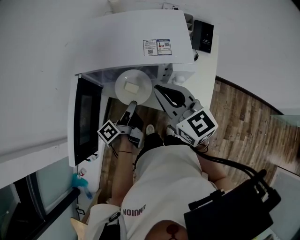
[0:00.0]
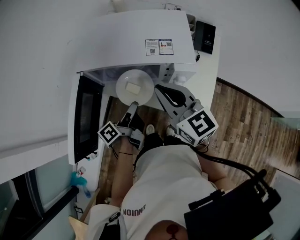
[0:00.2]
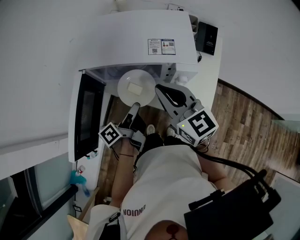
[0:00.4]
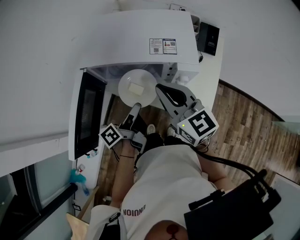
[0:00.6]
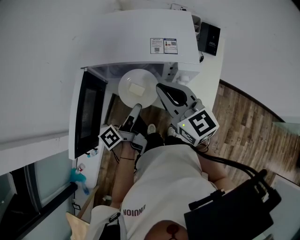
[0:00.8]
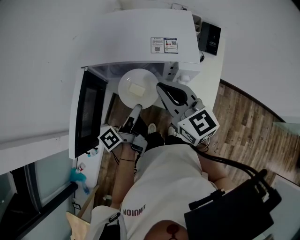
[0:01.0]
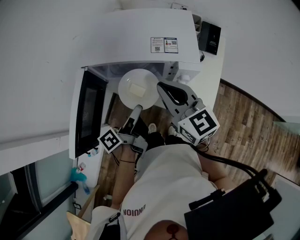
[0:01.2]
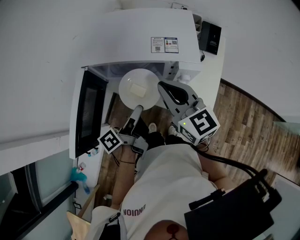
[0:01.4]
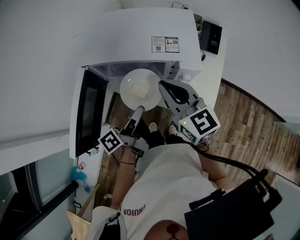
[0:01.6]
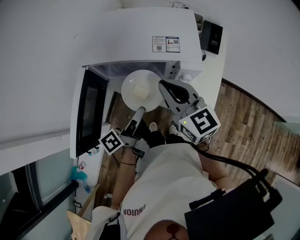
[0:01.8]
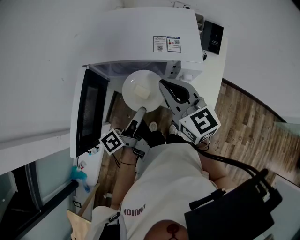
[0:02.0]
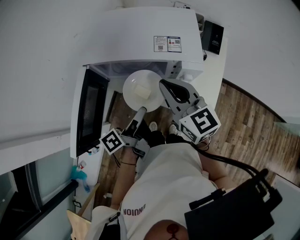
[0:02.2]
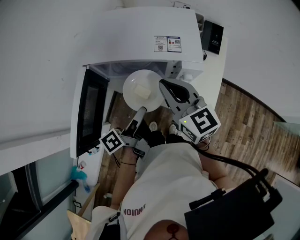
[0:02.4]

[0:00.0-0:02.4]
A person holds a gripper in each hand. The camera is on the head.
0:00.0 to 0:01.2: The left gripper changes place by some 5 cm.
0:01.2 to 0:02.4: The grippers make only small movements.

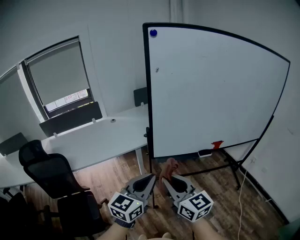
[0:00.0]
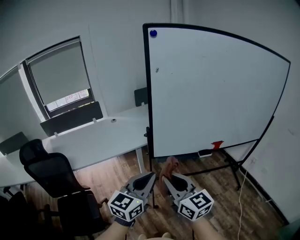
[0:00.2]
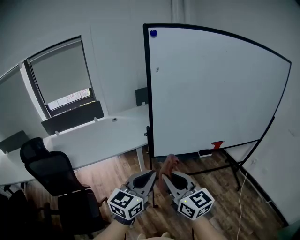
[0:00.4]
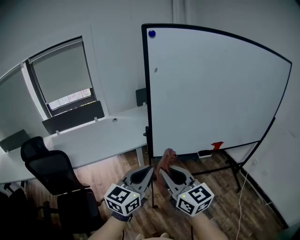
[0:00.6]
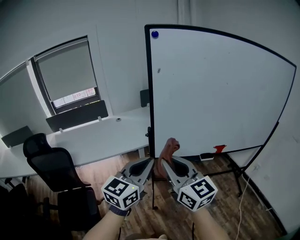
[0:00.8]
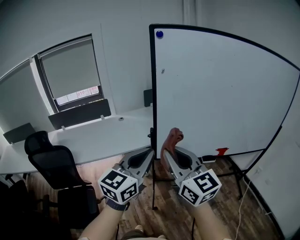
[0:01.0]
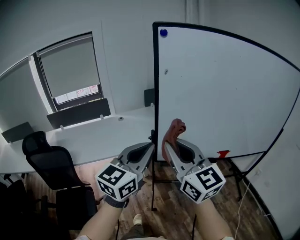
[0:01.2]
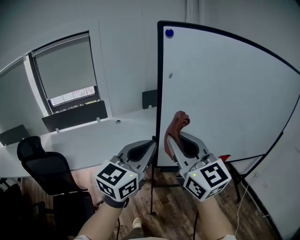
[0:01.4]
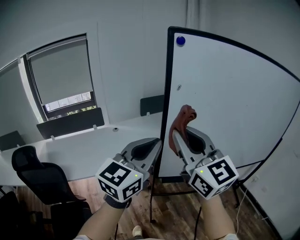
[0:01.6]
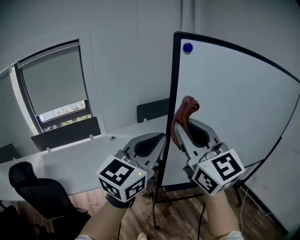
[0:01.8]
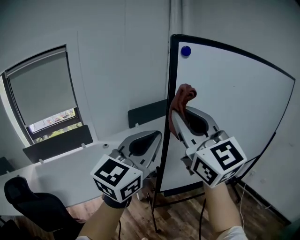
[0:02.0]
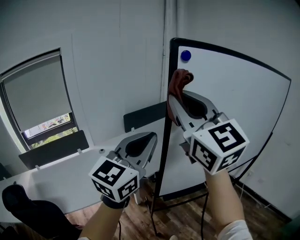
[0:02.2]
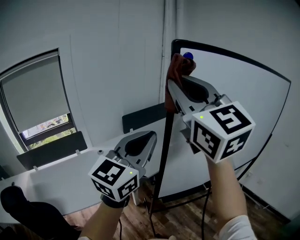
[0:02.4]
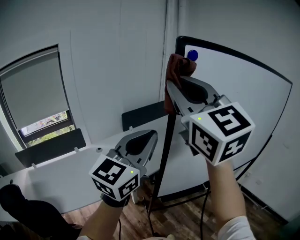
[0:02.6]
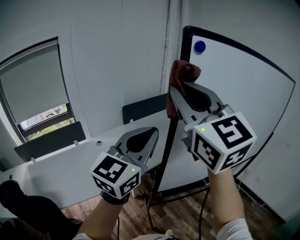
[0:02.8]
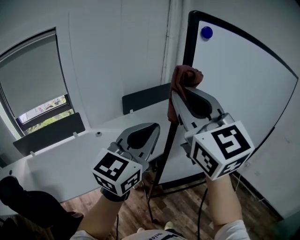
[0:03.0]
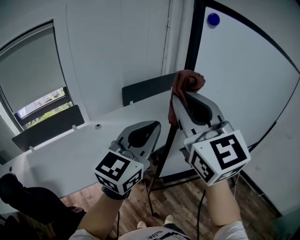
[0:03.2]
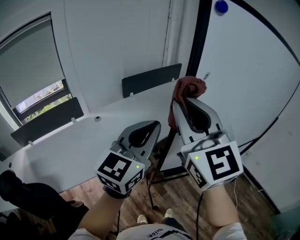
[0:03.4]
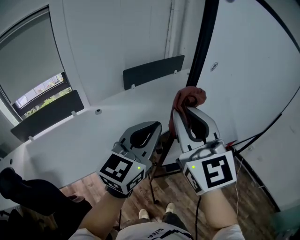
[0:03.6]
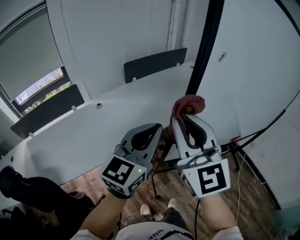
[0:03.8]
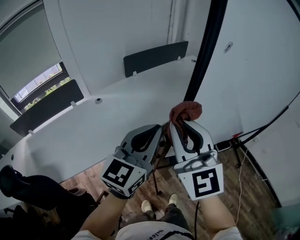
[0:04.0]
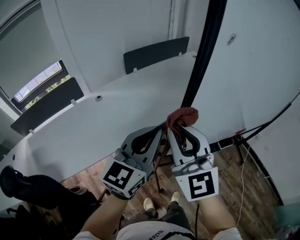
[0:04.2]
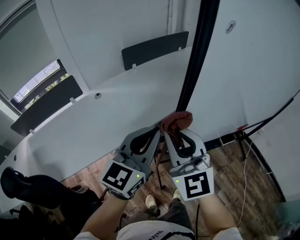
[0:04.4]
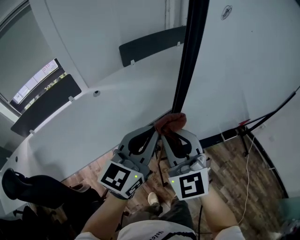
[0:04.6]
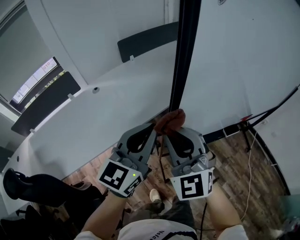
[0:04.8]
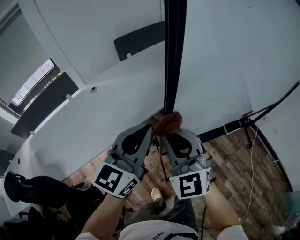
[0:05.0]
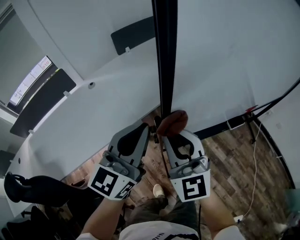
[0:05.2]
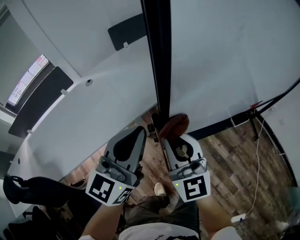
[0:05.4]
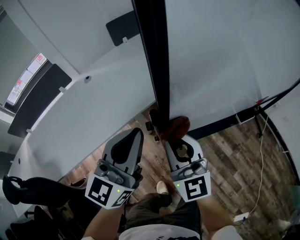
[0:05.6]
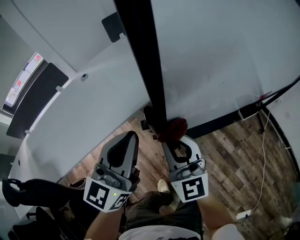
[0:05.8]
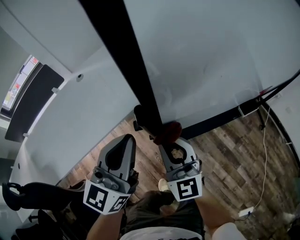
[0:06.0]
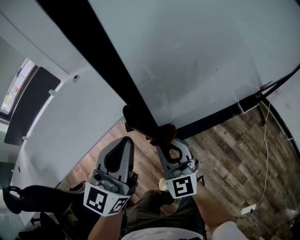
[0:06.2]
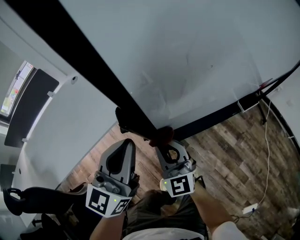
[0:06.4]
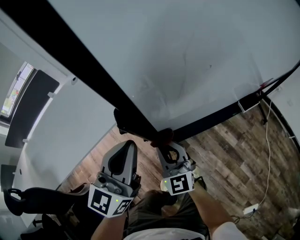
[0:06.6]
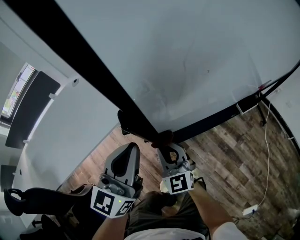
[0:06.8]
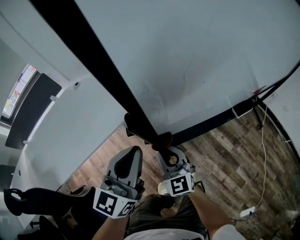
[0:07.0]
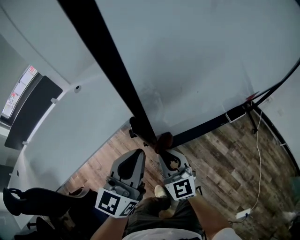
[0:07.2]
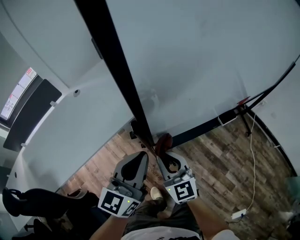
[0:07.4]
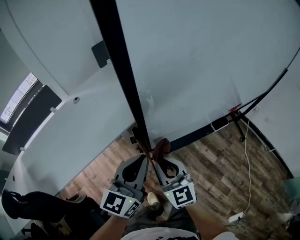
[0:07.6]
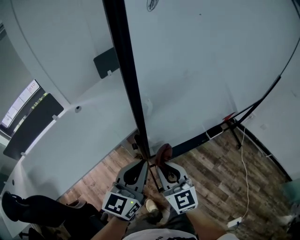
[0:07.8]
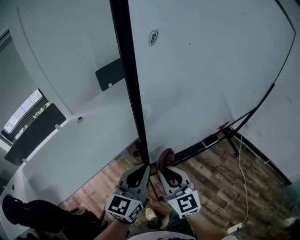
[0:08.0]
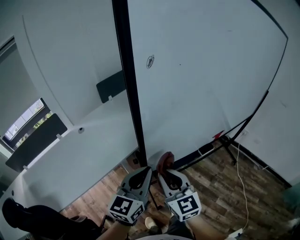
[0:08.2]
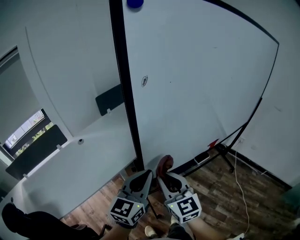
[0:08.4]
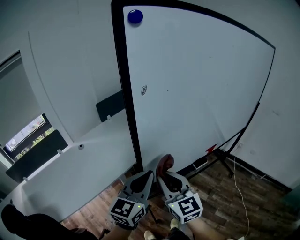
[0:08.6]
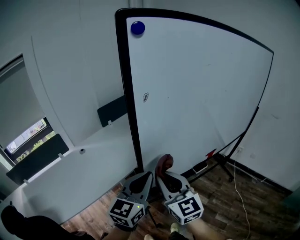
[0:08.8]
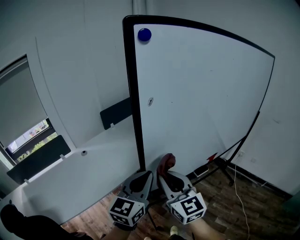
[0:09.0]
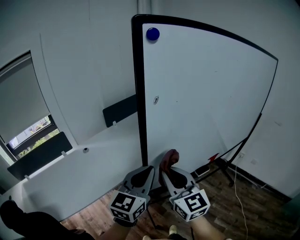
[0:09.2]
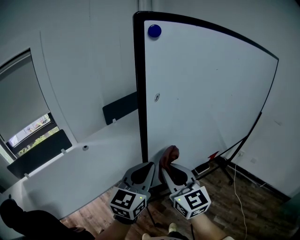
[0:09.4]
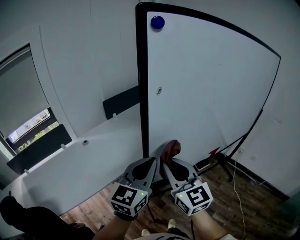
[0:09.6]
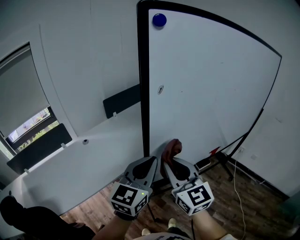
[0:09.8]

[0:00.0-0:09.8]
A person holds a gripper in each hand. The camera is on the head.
0:00.0 to 0:01.4: Both grippers move upward and forward, some 20 cm.
0:01.4 to 0:02.8: The left gripper heads forward, to the left and upward, covering roughly 20 cm, while the right gripper goes roughly 25 cm forward, upward and to the left, and turns by roughly 30 degrees.
0:02.8 to 0:04.2: Both grippers travel together downward, approximately 25 cm.
0:04.2 to 0:05.6: The right gripper is displaced downward by approximately 25 cm. The left gripper shifts some 15 cm downward.
0:05.6 to 0:07.0: The left gripper travels downward by roughly 10 cm. Meanwhile the right gripper shifts some 15 cm downward.
0:07.0 to 0:08.4: The right gripper is displaced upward by about 30 cm. Meanwhile the left gripper goes roughly 20 cm upward.
0:08.4 to 0:09.8: Both grippers travel together upward, approximately 10 cm.

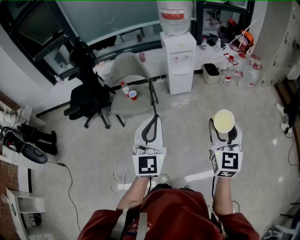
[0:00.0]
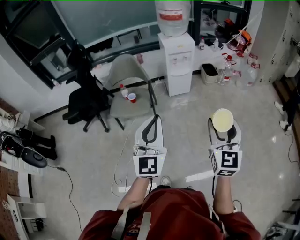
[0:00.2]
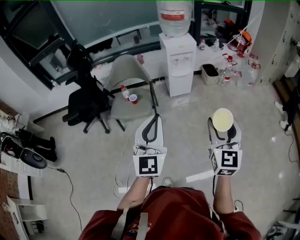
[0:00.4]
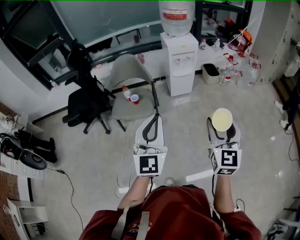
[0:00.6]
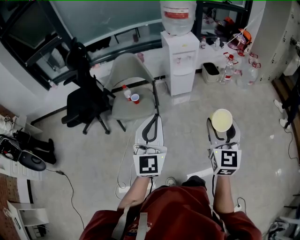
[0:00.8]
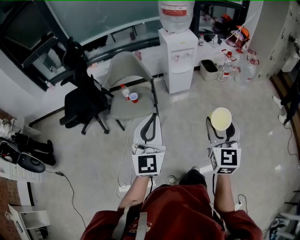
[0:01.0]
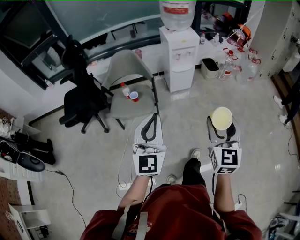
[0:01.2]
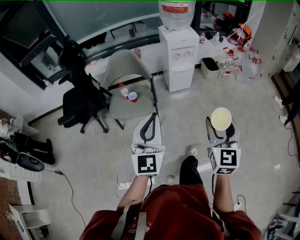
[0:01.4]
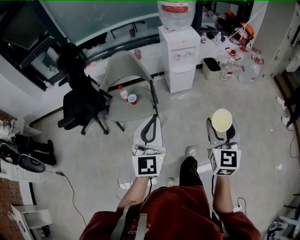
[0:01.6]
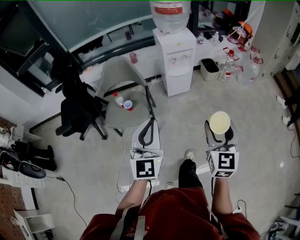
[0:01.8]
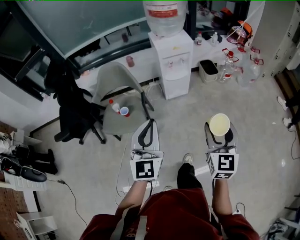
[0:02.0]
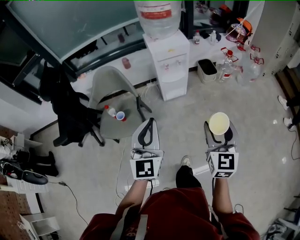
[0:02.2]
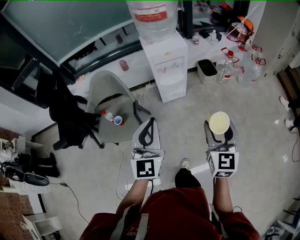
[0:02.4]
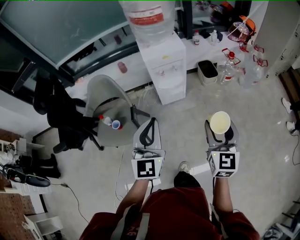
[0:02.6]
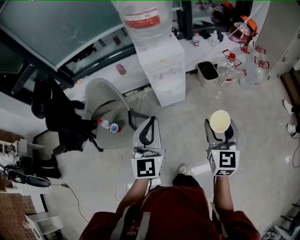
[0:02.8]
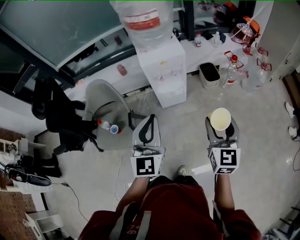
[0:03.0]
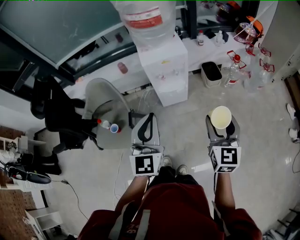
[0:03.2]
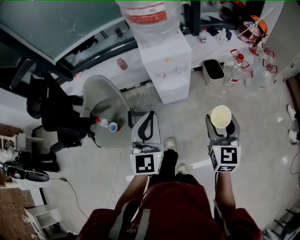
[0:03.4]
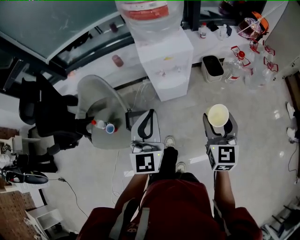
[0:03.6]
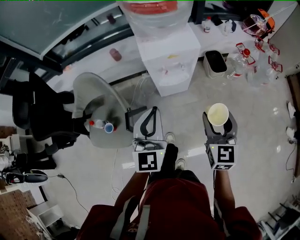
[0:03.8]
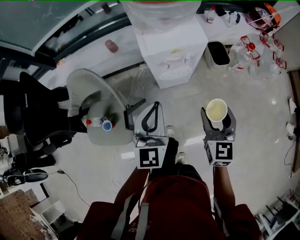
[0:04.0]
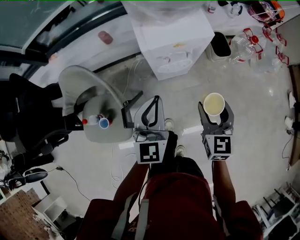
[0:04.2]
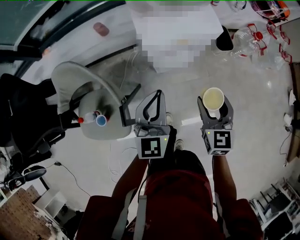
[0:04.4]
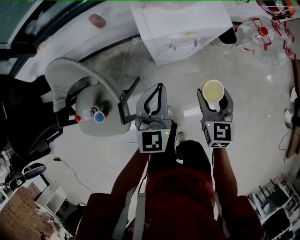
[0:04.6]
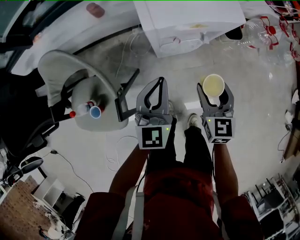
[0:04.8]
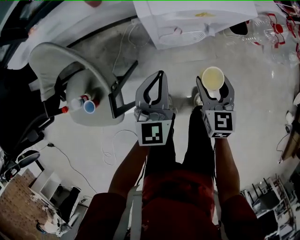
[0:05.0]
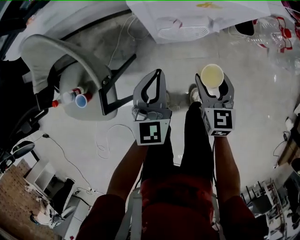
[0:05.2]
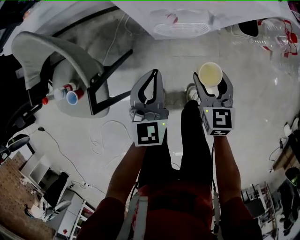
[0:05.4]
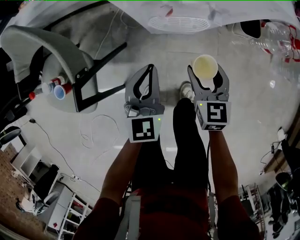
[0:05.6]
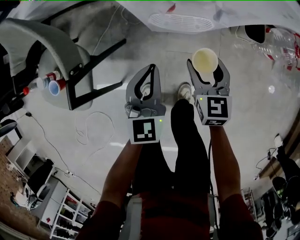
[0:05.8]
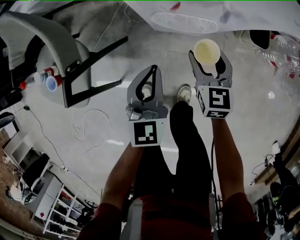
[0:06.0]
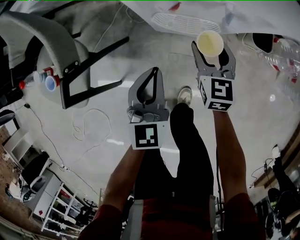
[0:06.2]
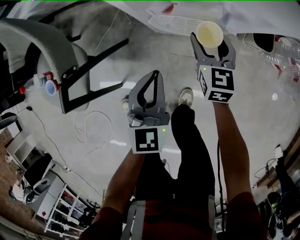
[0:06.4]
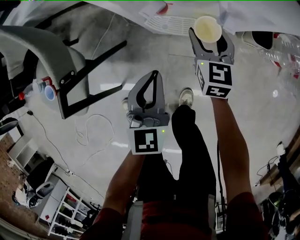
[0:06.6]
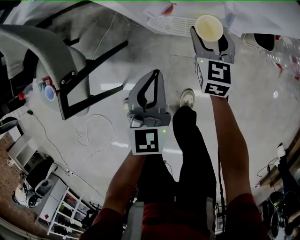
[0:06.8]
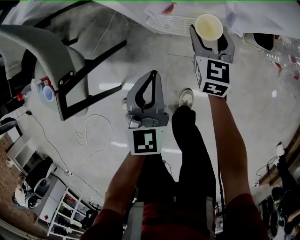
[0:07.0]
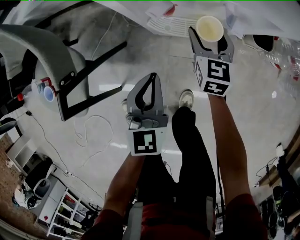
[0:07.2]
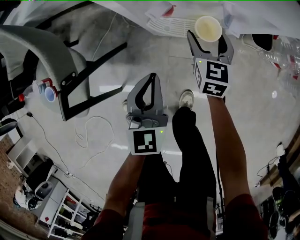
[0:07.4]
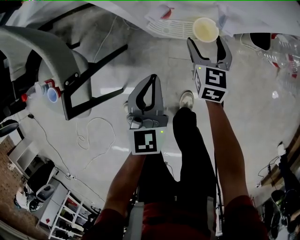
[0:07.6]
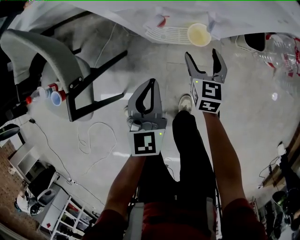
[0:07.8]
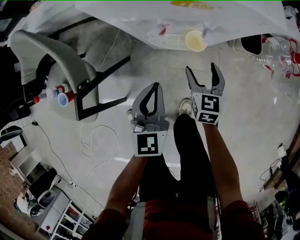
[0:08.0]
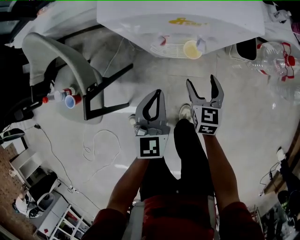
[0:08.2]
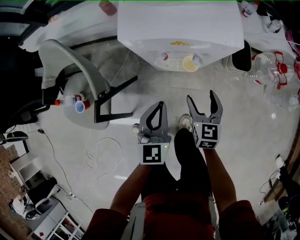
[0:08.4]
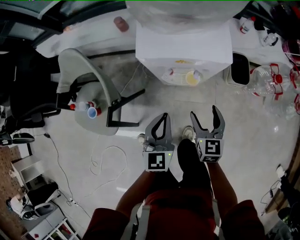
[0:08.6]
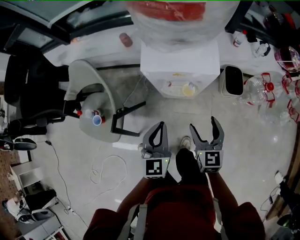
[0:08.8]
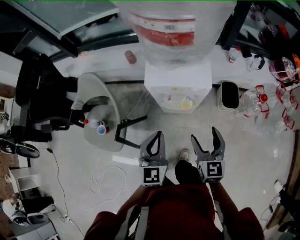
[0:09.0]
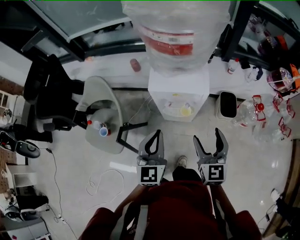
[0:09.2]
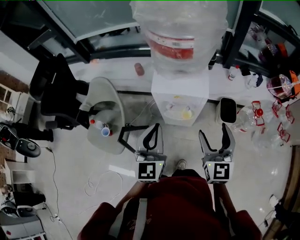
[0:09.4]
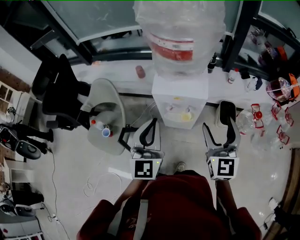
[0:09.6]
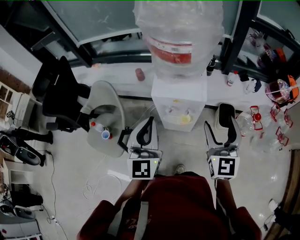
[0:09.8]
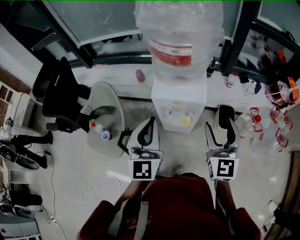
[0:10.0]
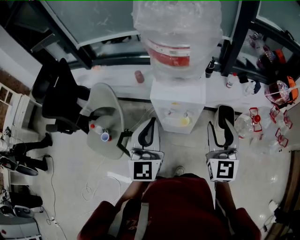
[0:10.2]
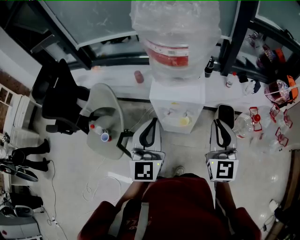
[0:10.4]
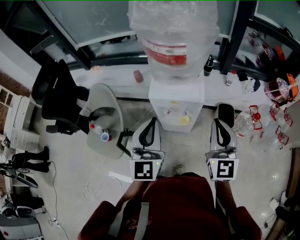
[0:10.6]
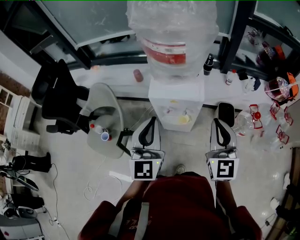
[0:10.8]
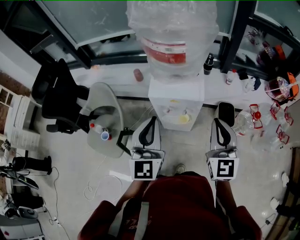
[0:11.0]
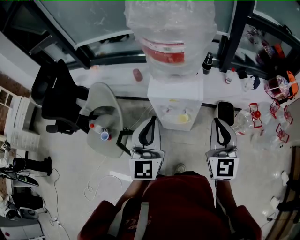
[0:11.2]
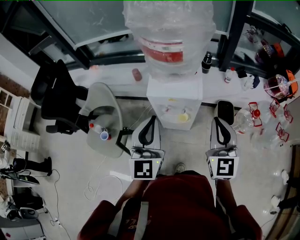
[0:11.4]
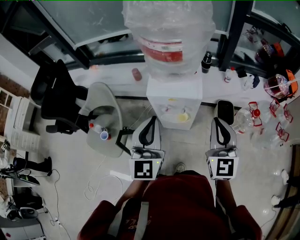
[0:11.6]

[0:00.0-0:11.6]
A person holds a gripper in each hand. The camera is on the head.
0:00.0 to 0:01.4: The grippers both shift to the left and forward by approximately 15 cm.
0:01.4 to 0:02.8: The grippers both shift forward and to the right by roughly 40 cm.
0:02.8 to 0:04.4: The left gripper is displaced forward and downward by roughly 35 cm. Meanwhile the right gripper heads forward, downward and to the left, covering roughly 35 cm.
0:04.4 to 0:05.8: Both grippers travel together downward, roughly 25 cm. The left gripper turns by approximately 20 degrees. The right gripper rotates approximately 20 degrees.
0:05.8 to 0:07.2: The right gripper is displaced forward and downward by some 15 cm.
0:07.2 to 0:08.8: The left gripper moves upward, about 25 cm, while the right gripper is displaced upward and backward by about 35 cm.
0:08.8 to 0:10.2: The two grippers go roughly 25 cm upward. The right gripper changes its angle by about 30 degrees, and closes its fingers; the left gripper rotates approximately 20 degrees.
0:10.2 to 0:11.6: The right gripper closes up.
